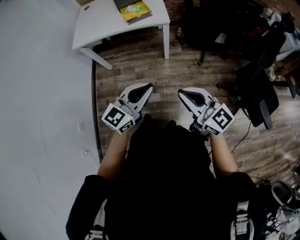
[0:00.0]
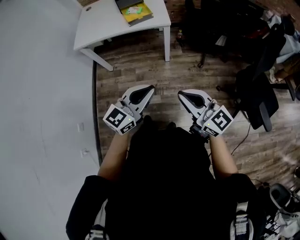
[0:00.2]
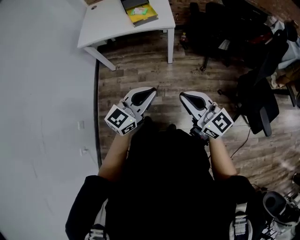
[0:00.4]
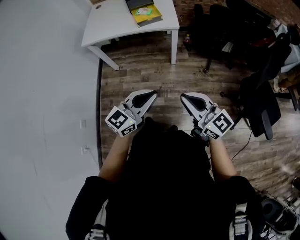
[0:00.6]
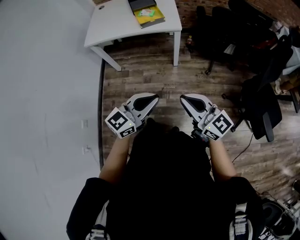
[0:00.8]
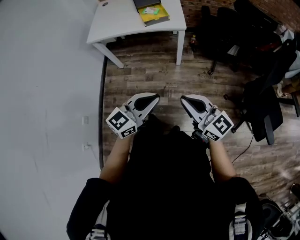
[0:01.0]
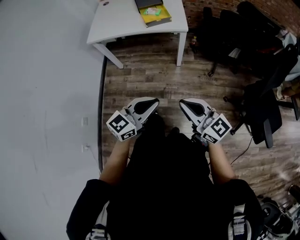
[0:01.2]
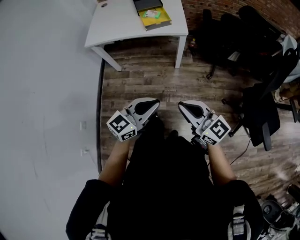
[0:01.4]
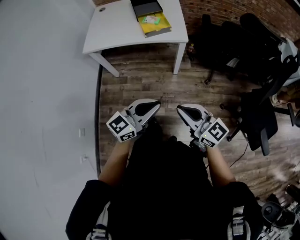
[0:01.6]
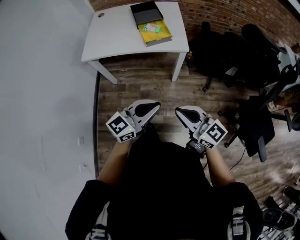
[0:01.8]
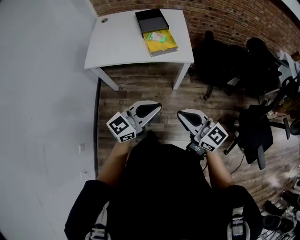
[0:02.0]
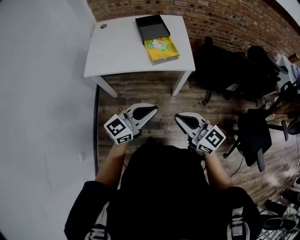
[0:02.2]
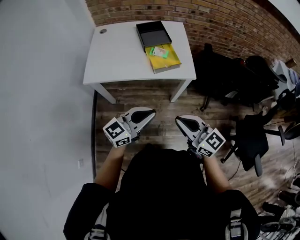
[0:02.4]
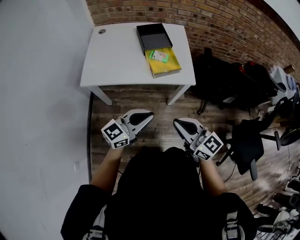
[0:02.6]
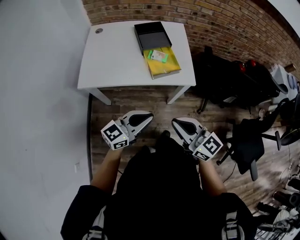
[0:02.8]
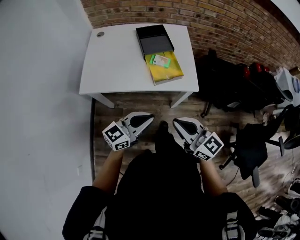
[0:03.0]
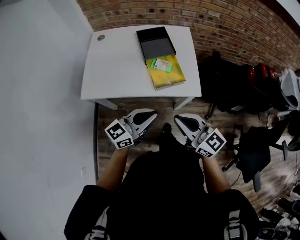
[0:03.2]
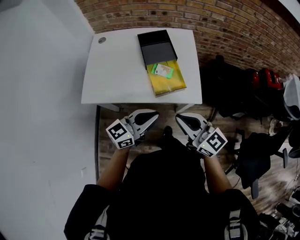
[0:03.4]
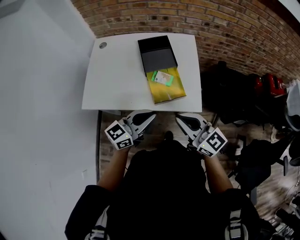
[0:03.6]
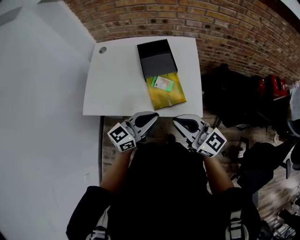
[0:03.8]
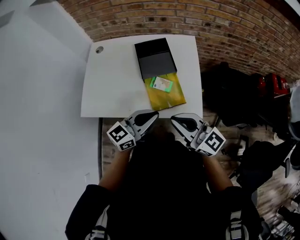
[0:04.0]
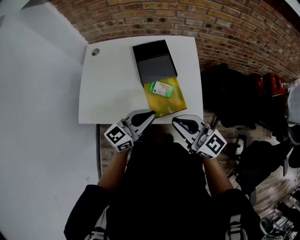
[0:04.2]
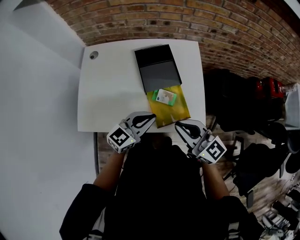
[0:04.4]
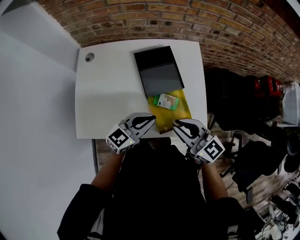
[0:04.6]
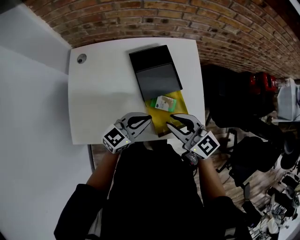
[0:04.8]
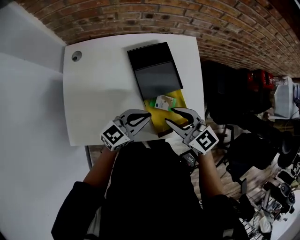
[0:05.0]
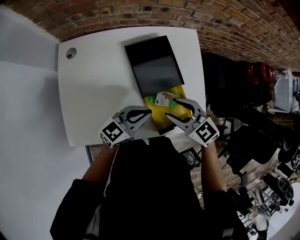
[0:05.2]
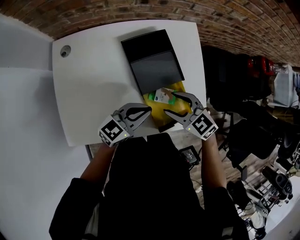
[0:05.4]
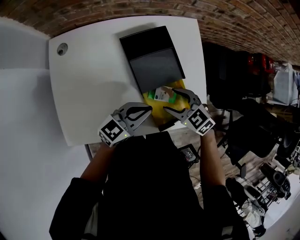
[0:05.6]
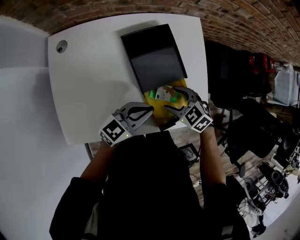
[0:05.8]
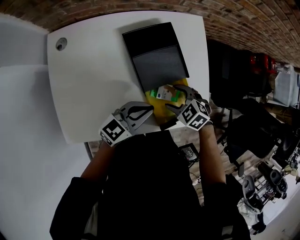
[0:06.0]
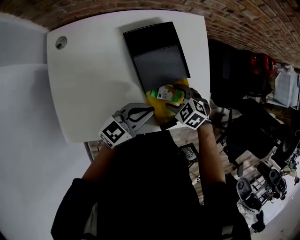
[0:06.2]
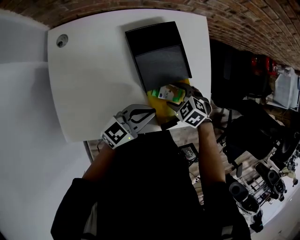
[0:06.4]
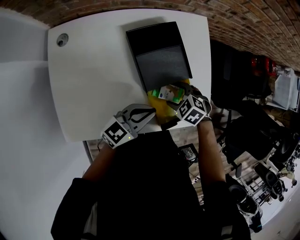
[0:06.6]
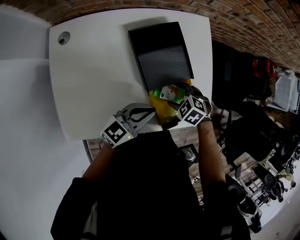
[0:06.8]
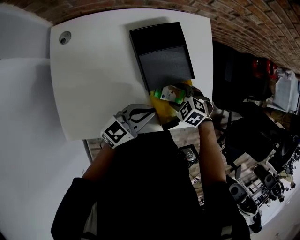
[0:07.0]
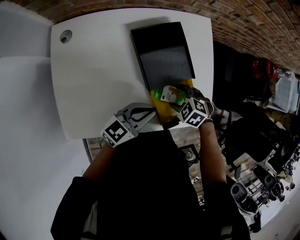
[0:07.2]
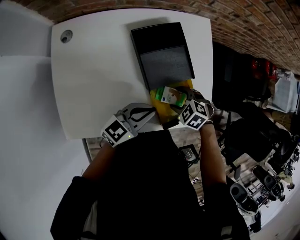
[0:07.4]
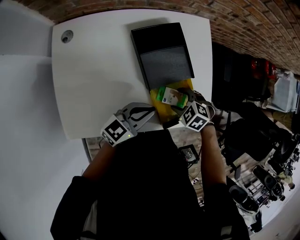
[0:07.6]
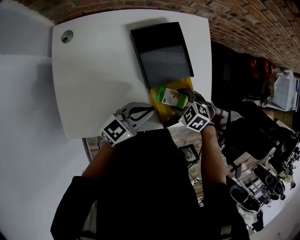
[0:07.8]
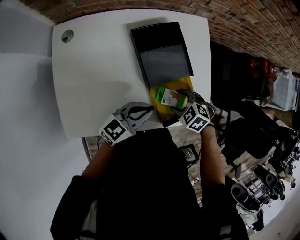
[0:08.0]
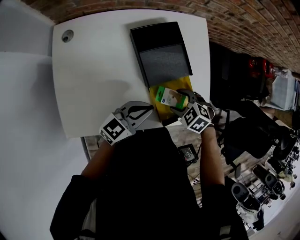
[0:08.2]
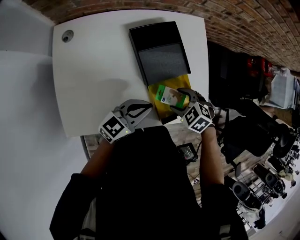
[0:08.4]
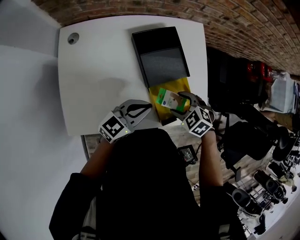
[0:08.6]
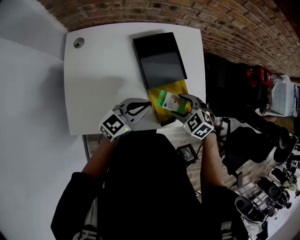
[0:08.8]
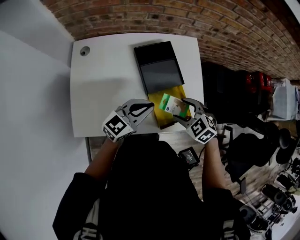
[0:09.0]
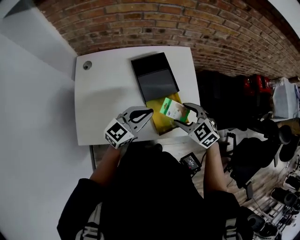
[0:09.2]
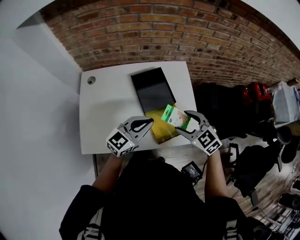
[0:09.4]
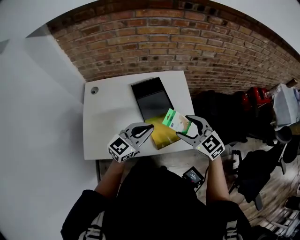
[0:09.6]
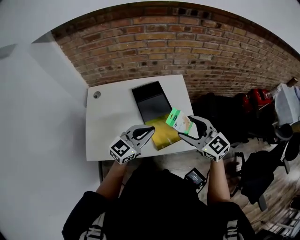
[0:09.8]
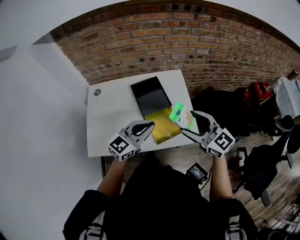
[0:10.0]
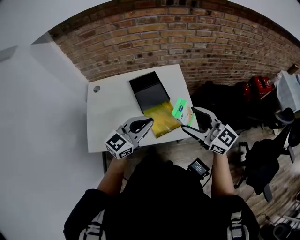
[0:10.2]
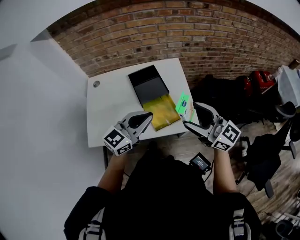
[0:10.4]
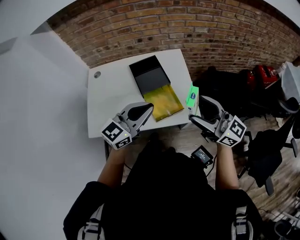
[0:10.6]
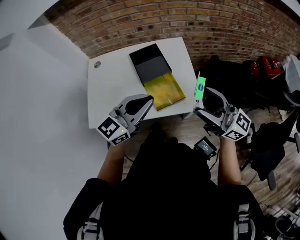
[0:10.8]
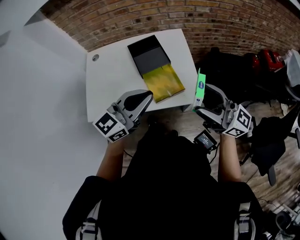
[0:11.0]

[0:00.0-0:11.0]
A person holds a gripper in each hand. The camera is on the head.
0:00.0 to 0:01.6: The left gripper shifts roughly 5 cm forward, while the right gripper is displaced forward and to the left by roughly 10 cm.
0:01.6 to 0:03.2: The two grippers go approximately 35 cm forward.
0:03.2 to 0:04.8: Both grippers travel together forward, some 30 cm.
0:04.8 to 0:06.2: The right gripper moves downward, about 20 cm, tilts its fingers about 50 degrees downward, and opens its fingers; the left gripper moves downward, some 5 cm.
0:06.2 to 0:07.8: The grippers move only a little.
0:07.8 to 0:09.4: Both grippers travel together upward, roughly 20 cm. The right gripper angles its fingers upward, by roughly 40 degrees.
0:09.4 to 0:11.0: The left gripper shifts some 20 cm backward, upward and to the right, while the right gripper is displaced upward, backward and to the right by about 25 cm, and tilts its fingers approximately 60 degrees upward.

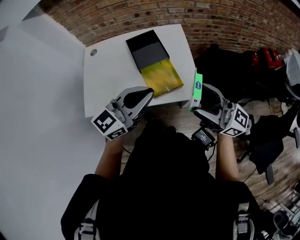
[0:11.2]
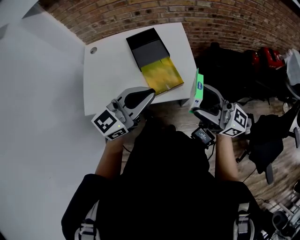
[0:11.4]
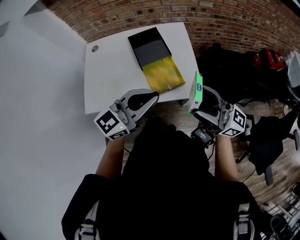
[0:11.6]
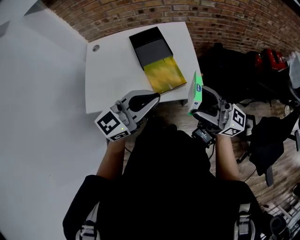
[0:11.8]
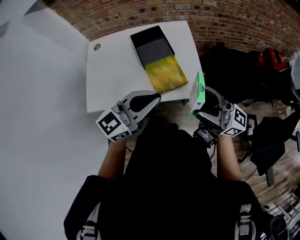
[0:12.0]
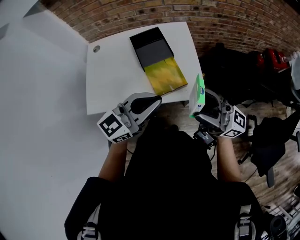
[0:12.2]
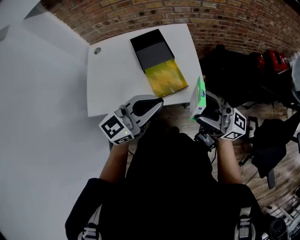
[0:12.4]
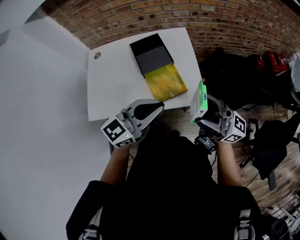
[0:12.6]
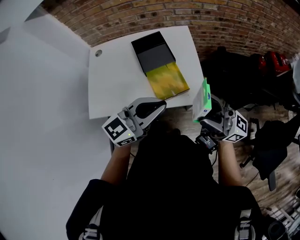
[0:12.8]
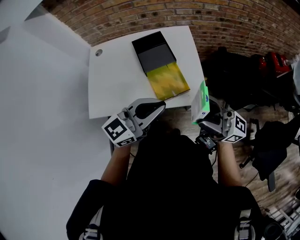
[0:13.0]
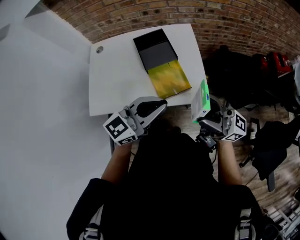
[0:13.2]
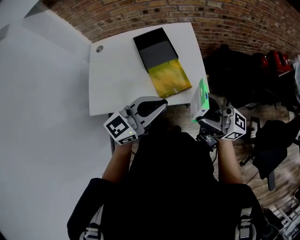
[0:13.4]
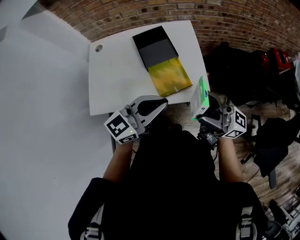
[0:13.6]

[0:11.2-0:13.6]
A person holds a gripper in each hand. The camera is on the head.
0:11.2 to 0:13.6: There are only small adjustments of the grippers.

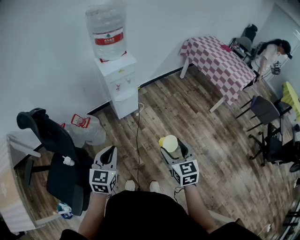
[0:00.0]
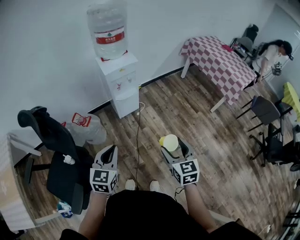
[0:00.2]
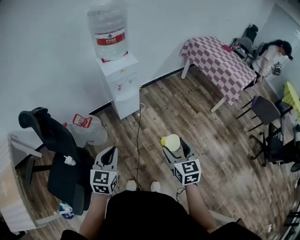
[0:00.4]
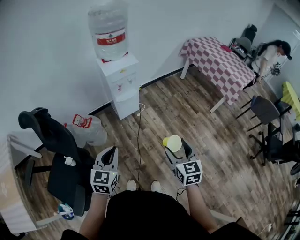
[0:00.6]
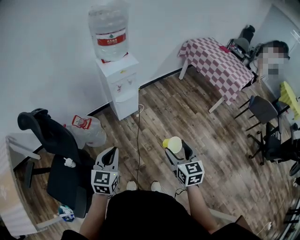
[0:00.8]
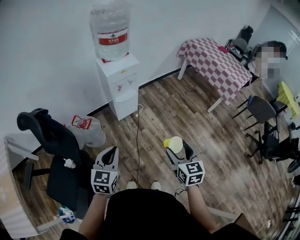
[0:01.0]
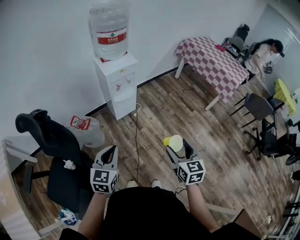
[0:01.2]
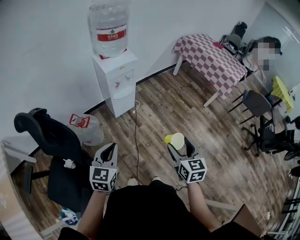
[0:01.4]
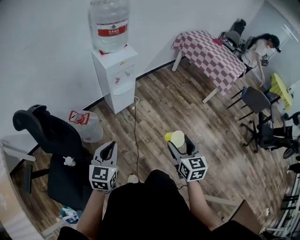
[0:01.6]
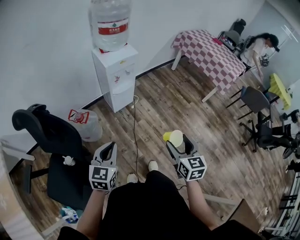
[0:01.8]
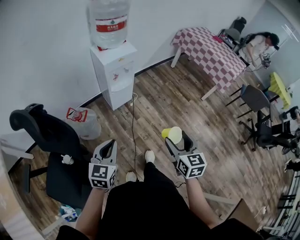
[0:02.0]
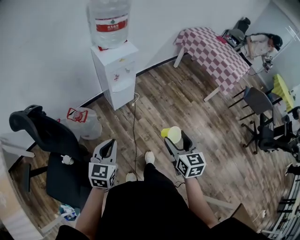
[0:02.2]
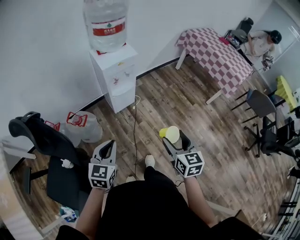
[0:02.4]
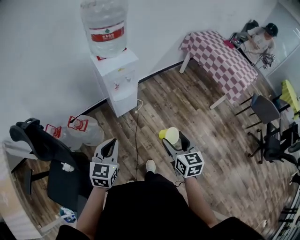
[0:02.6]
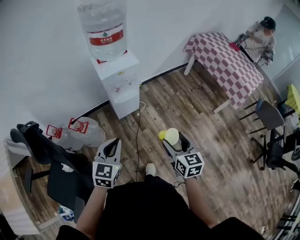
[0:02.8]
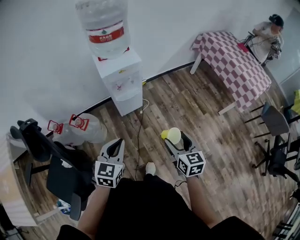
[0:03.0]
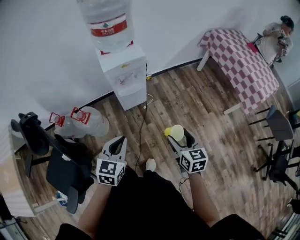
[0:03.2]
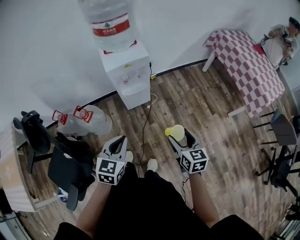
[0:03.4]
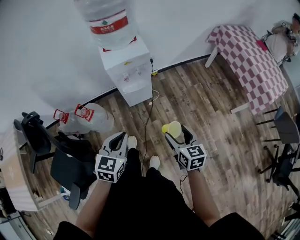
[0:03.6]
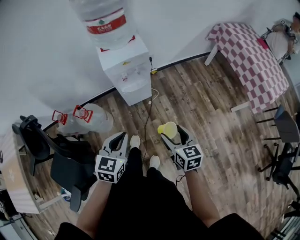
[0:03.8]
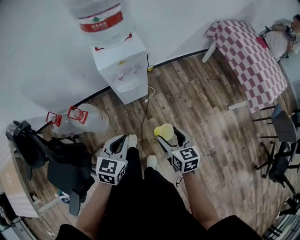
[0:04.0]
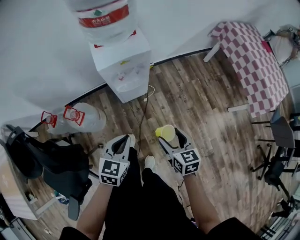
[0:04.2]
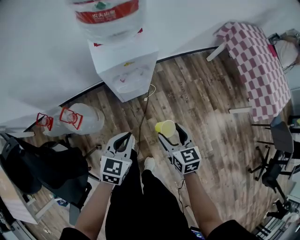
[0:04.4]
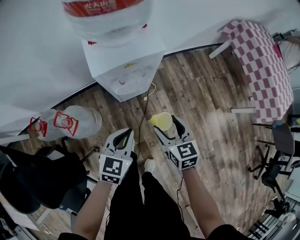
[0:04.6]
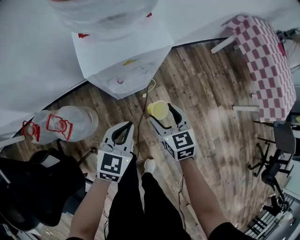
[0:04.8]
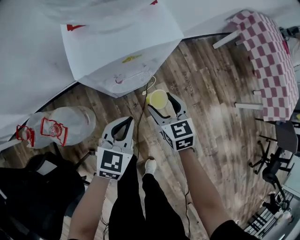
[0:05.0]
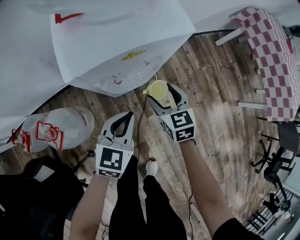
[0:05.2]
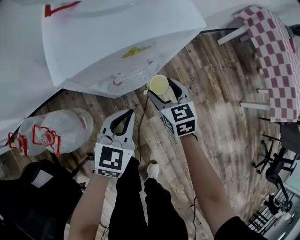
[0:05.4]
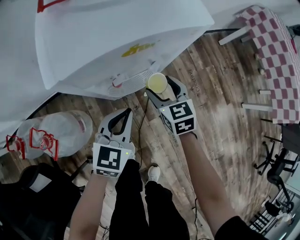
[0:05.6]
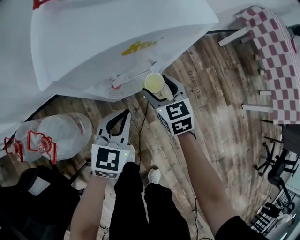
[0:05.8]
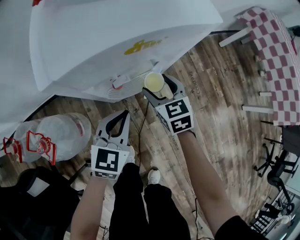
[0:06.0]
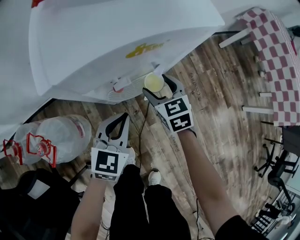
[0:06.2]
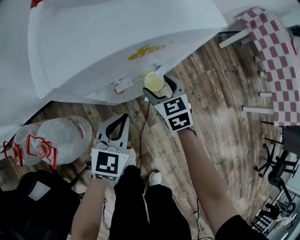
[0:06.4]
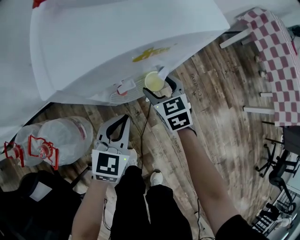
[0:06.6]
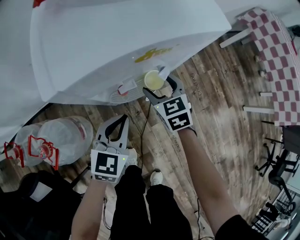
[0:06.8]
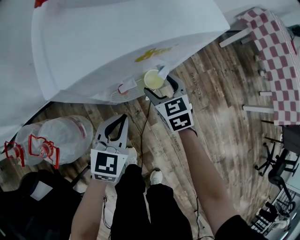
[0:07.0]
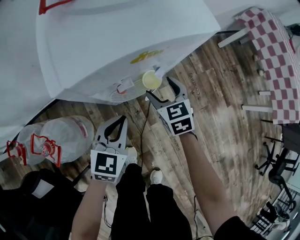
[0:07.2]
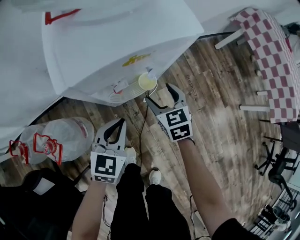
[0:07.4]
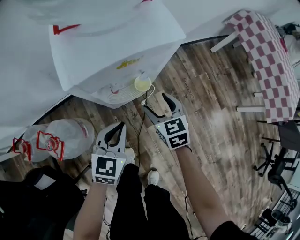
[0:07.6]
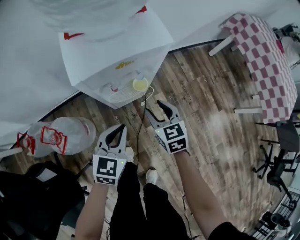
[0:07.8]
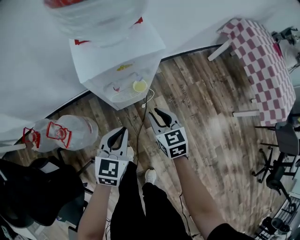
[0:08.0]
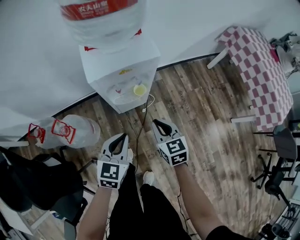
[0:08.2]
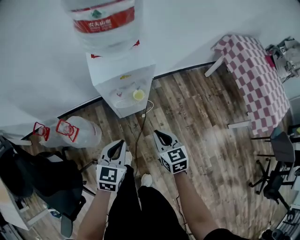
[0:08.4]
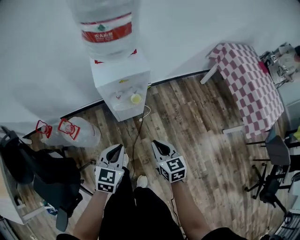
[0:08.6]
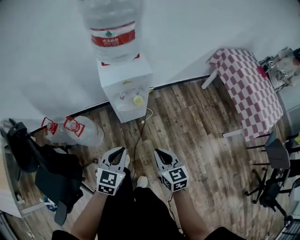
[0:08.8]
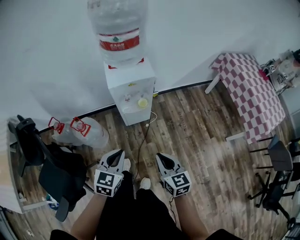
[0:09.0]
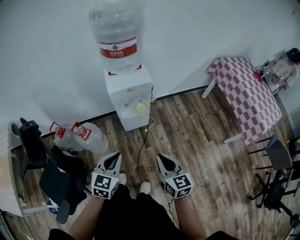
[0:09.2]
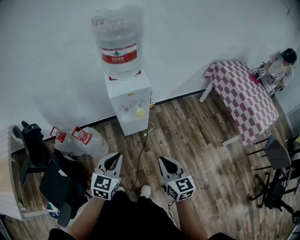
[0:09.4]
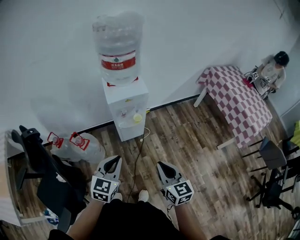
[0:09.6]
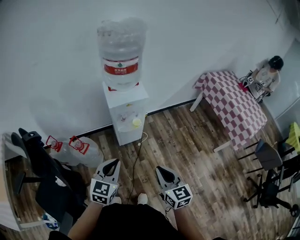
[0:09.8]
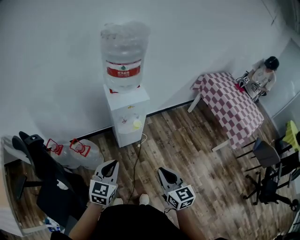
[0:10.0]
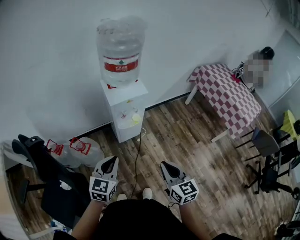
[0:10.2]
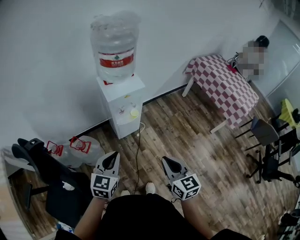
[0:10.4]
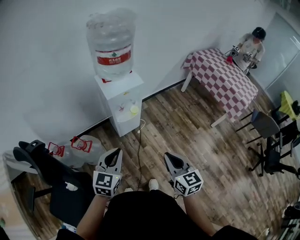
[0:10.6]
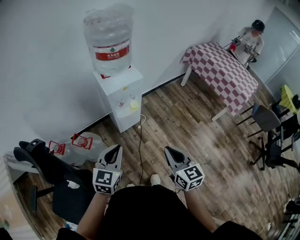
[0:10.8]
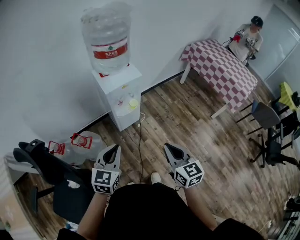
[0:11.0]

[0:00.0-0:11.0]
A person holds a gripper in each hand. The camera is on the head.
0:00.0 to 0:01.6: The left gripper is displaced to the left by about 10 cm, while the right gripper shifts by approximately 5 cm.
0:01.6 to 0:03.2: The right gripper is displaced forward by some 20 cm. The left gripper is displaced forward and to the right by approximately 20 cm.
0:03.2 to 0:04.8: The right gripper goes about 40 cm forward, downward and to the left; the left gripper is displaced forward and downward by approximately 35 cm.
0:04.8 to 0:06.2: The grippers both shift downward and forward by roughly 20 cm.
0:06.2 to 0:07.8: Both grippers move upward and backward, about 15 cm.
0:07.8 to 0:09.4: The right gripper heads backward and upward, covering some 40 cm, changes its angle by approximately 20 degrees, and closes; the left gripper goes roughly 35 cm upward and backward.
0:09.4 to 0:11.0: The grippers both shift to the left by about 10 cm.
